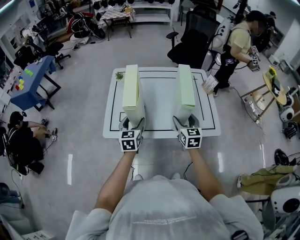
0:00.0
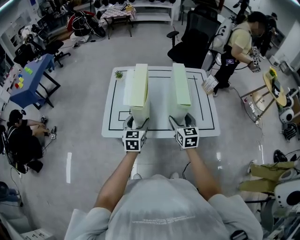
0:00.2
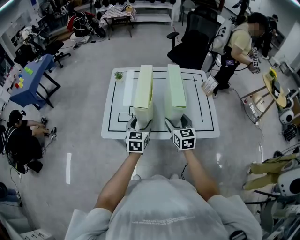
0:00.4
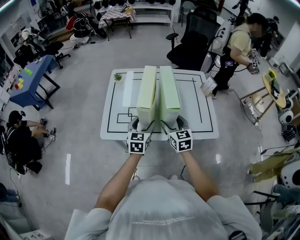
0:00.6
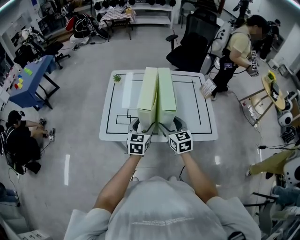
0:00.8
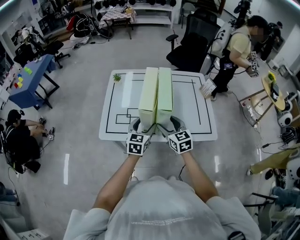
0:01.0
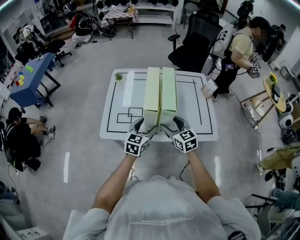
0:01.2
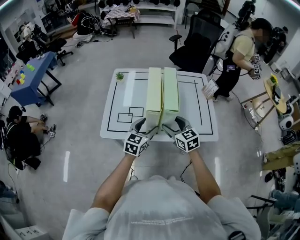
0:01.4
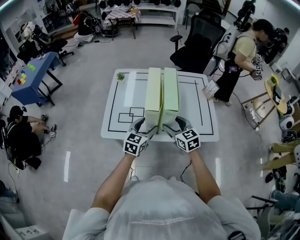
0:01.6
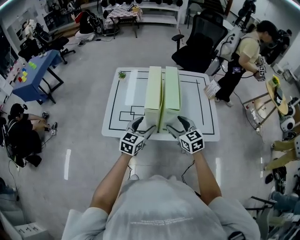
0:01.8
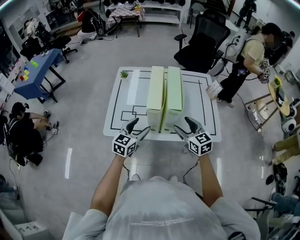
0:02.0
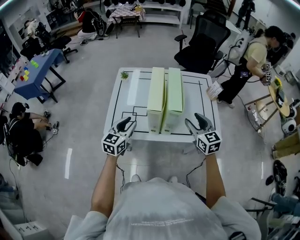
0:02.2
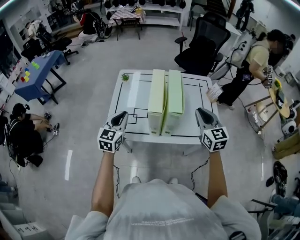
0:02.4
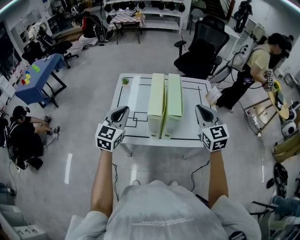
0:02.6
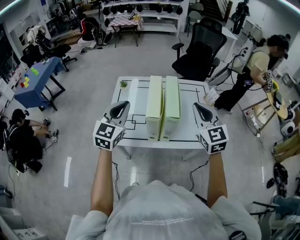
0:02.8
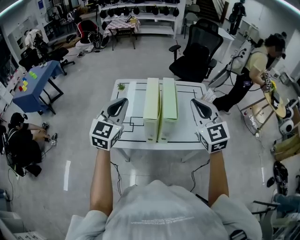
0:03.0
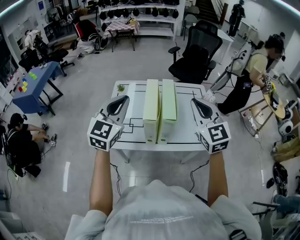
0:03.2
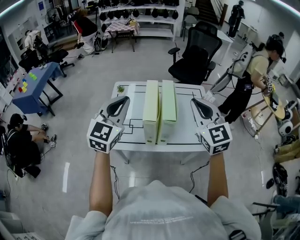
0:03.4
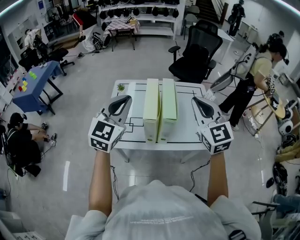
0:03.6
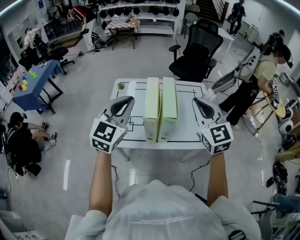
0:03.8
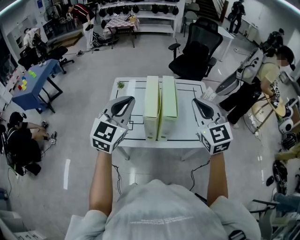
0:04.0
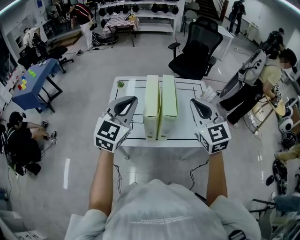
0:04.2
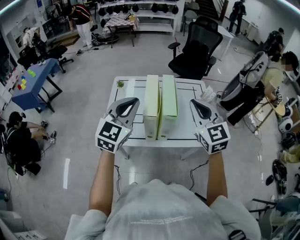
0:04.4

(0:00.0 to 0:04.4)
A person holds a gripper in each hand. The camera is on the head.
0:00.0 - 0:01.4: The right gripper is displaced to the left by roughly 5 cm, and changes its angle by some 20 degrees; the left gripper is displaced to the right by some 10 cm, and turns by roughly 20 degrees.
0:01.4 - 0:03.0: The left gripper goes some 25 cm upward and to the left, rotates some 30 degrees, and closes up; the right gripper is displaced upward by about 25 cm, swivels roughly 30 degrees, and closes its fingers.
0:03.0 - 0:04.4: The left gripper is displaced to the right by approximately 5 cm.

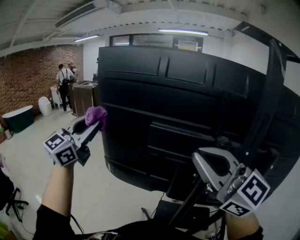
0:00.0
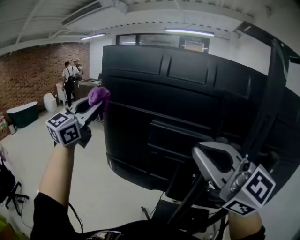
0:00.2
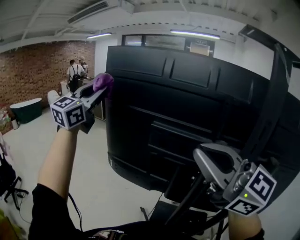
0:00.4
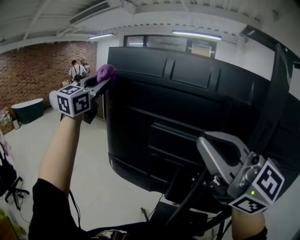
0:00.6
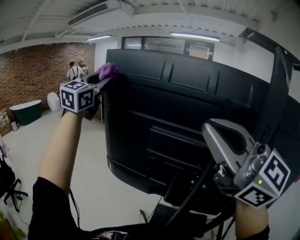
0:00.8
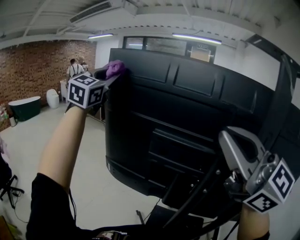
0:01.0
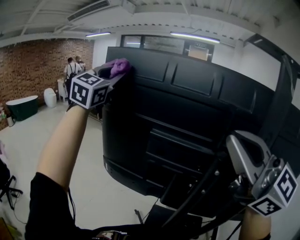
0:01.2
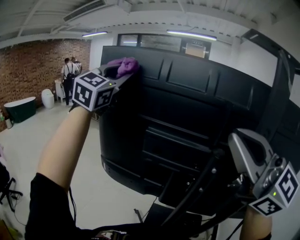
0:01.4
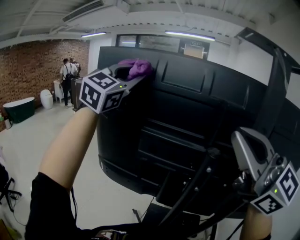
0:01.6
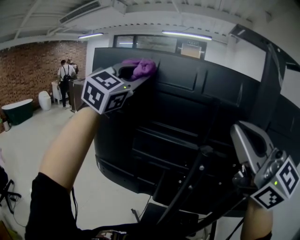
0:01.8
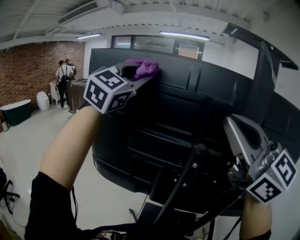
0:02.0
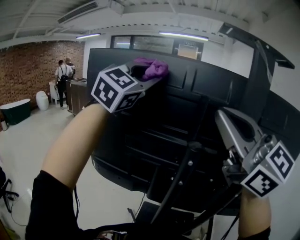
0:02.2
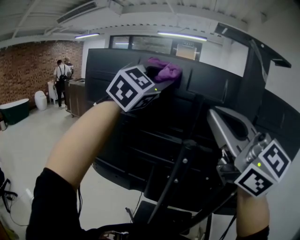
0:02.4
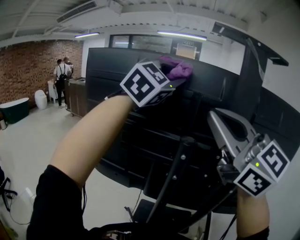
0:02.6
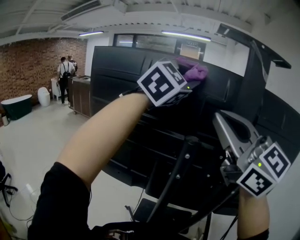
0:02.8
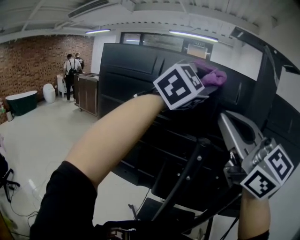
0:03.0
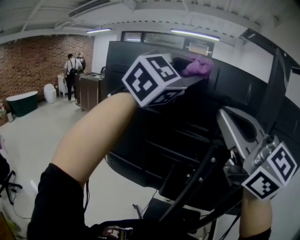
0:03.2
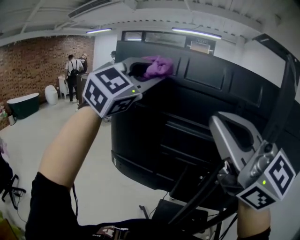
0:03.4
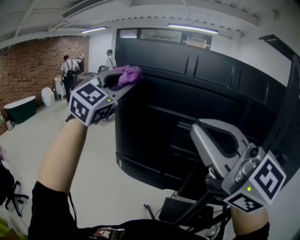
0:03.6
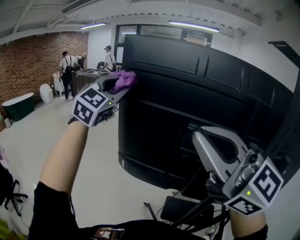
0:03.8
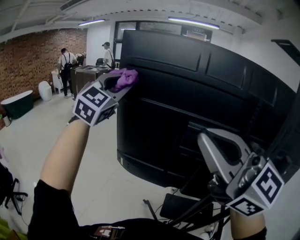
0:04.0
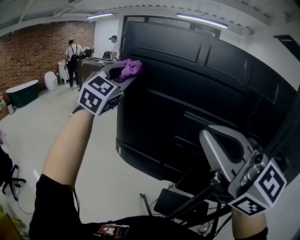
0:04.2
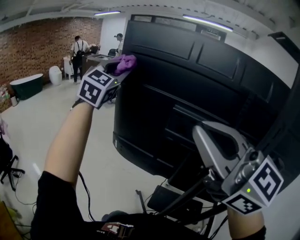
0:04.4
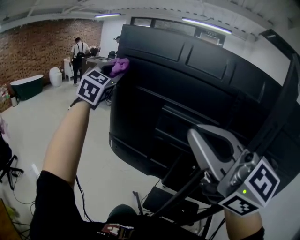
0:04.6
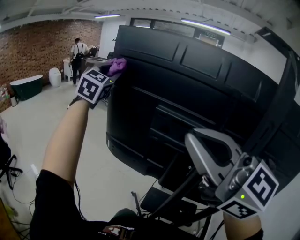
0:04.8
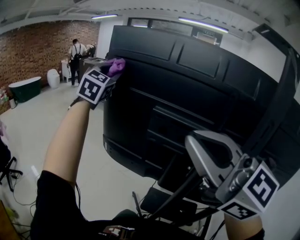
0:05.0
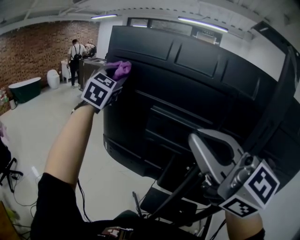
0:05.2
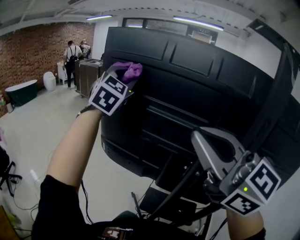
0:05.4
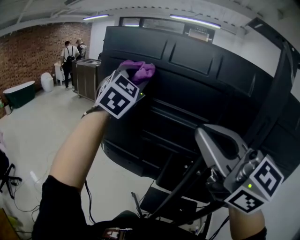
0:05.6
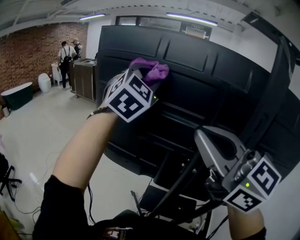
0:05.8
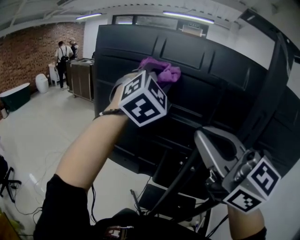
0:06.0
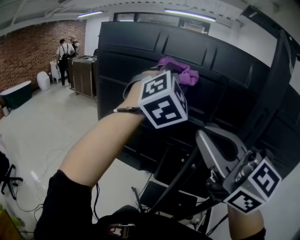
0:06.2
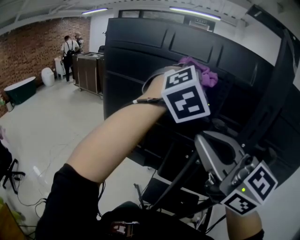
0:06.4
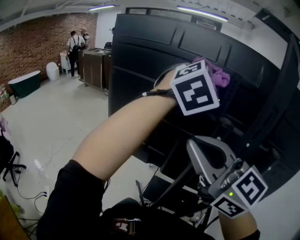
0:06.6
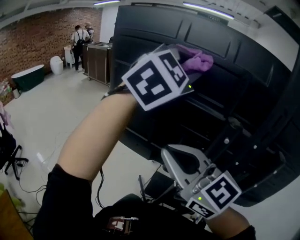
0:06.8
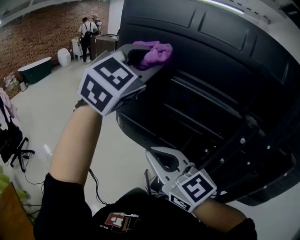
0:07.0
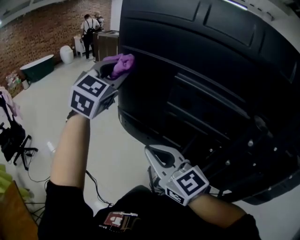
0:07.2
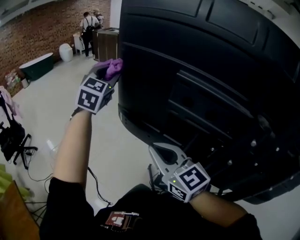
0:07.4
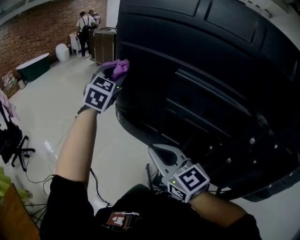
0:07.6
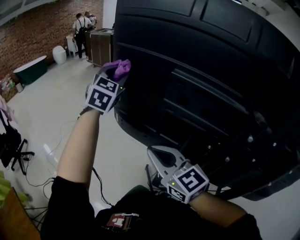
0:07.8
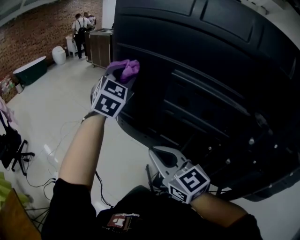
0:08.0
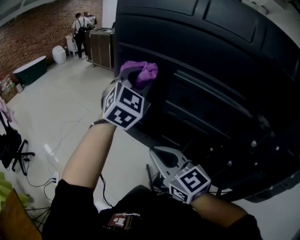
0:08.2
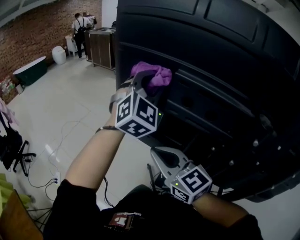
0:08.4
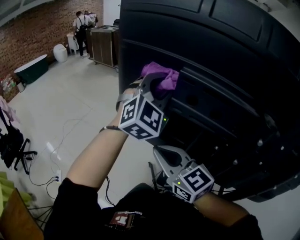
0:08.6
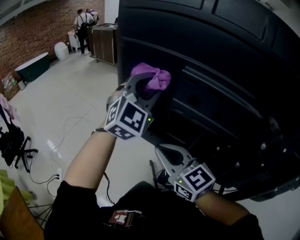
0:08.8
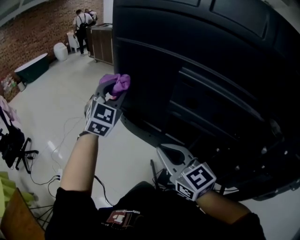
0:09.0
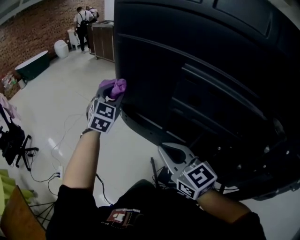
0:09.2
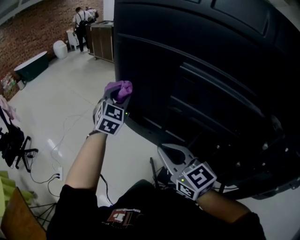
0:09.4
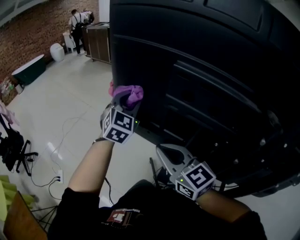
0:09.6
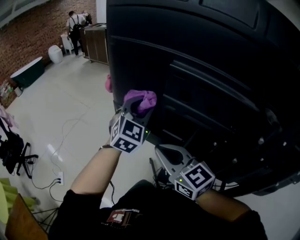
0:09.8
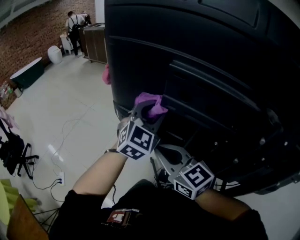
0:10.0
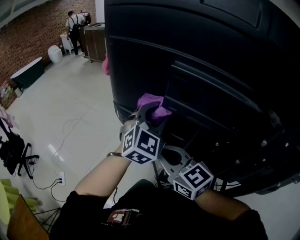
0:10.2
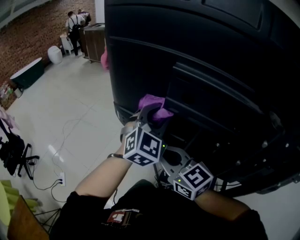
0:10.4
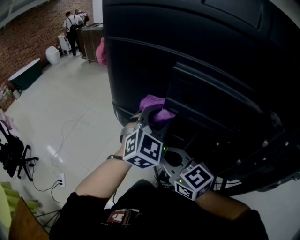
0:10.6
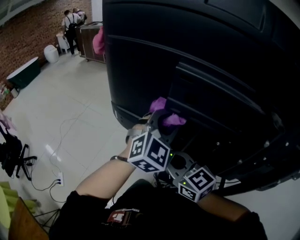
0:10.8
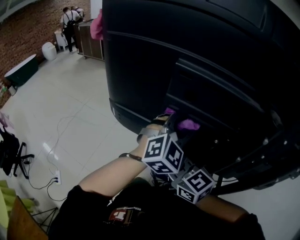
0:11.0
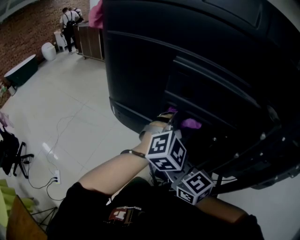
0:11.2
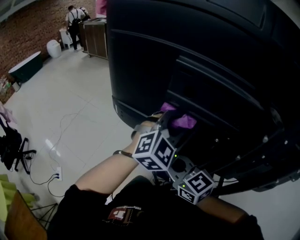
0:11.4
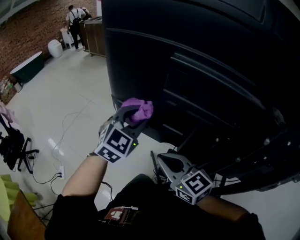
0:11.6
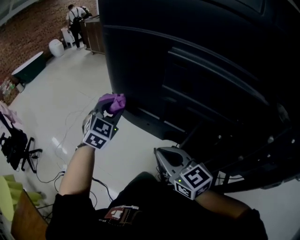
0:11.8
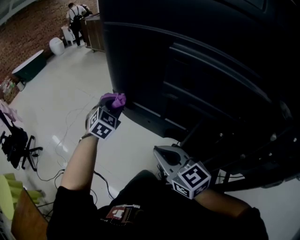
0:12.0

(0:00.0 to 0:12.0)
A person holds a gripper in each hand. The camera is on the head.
0:00.0 - 0:01.6: The left gripper moves to the right and upward, approximately 25 cm, and changes its angle by about 20 degrees. Meanwhile the right gripper goes roughly 15 cm upward and to the right.
0:01.6 - 0:03.0: The left gripper heads to the right, covering some 25 cm, and swivels some 20 degrees.
0:03.0 - 0:04.4: The right gripper heads to the left and downward, covering approximately 15 cm. Meanwhile the left gripper is displaced to the left and forward by about 40 cm, and turns by about 40 degrees.
0:04.4 - 0:06.0: The right gripper heads to the right, covering some 10 cm. The left gripper goes approximately 25 cm to the right and backward, and rotates about 20 degrees.
0:06.0 - 0:07.6: The right gripper shifts approximately 30 cm downward and to the left, and rotates some 20 degrees; the left gripper travels to the left, downward and forward by roughly 35 cm, and rotates about 30 degrees.
0:07.6 - 0:09.0: The left gripper is displaced downward by about 5 cm, and goes to the right and returns, approximately 15 cm each way.
0:09.0 - 0:10.4: The left gripper shifts about 20 cm to the right and backward.
0:10.4 - 0:12.0: The left gripper is displaced to the left, downward and forward by about 25 cm, and rotates some 30 degrees.

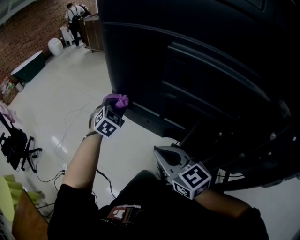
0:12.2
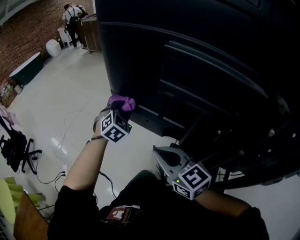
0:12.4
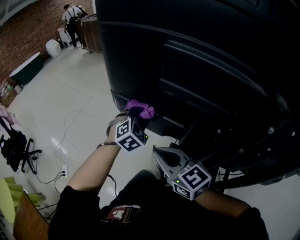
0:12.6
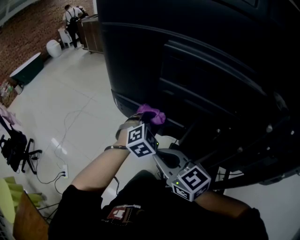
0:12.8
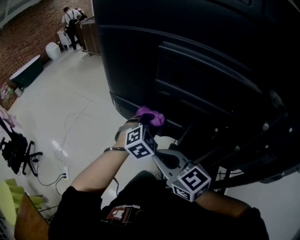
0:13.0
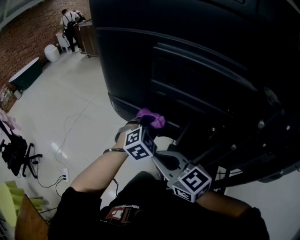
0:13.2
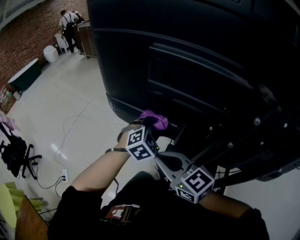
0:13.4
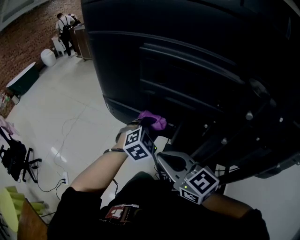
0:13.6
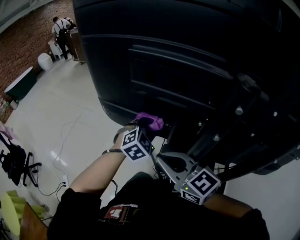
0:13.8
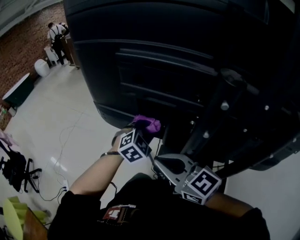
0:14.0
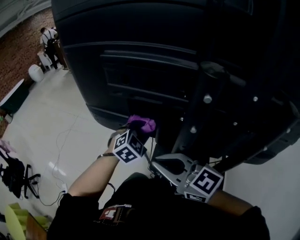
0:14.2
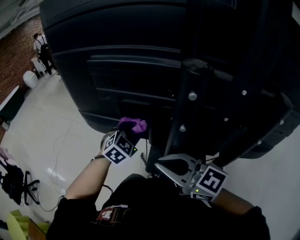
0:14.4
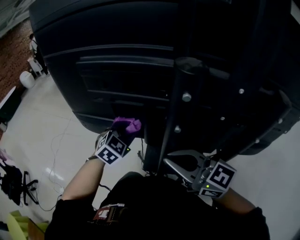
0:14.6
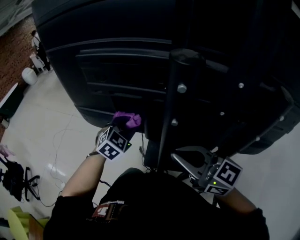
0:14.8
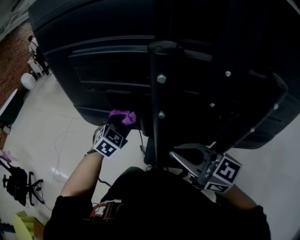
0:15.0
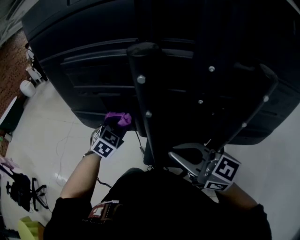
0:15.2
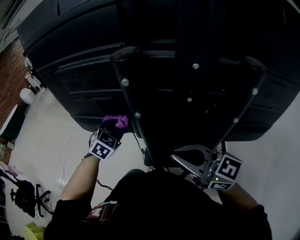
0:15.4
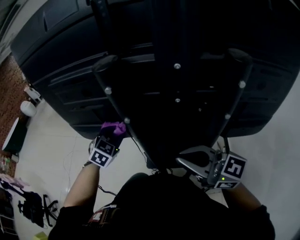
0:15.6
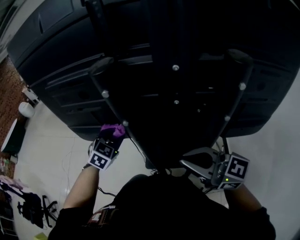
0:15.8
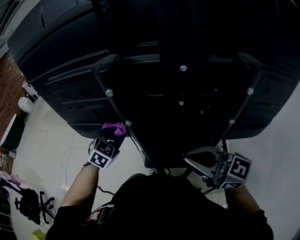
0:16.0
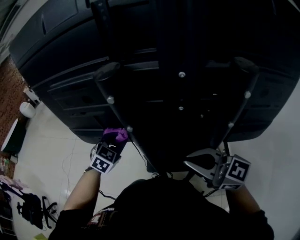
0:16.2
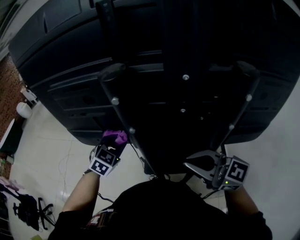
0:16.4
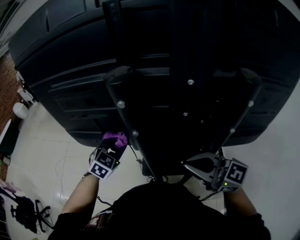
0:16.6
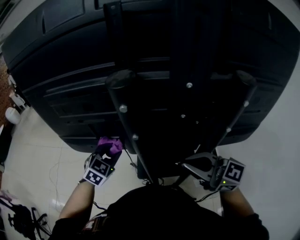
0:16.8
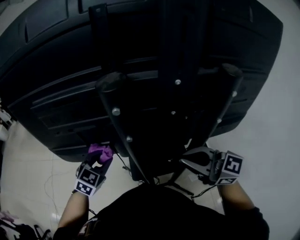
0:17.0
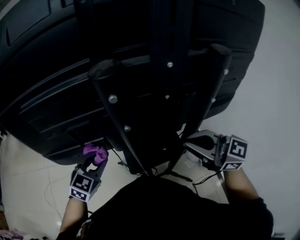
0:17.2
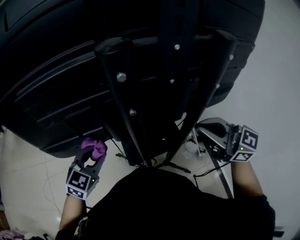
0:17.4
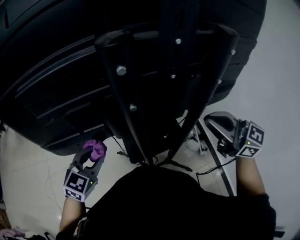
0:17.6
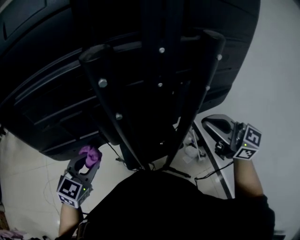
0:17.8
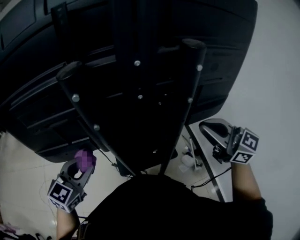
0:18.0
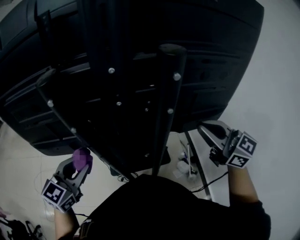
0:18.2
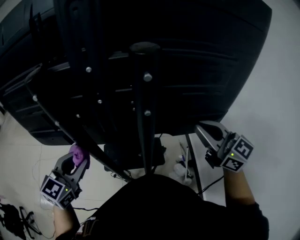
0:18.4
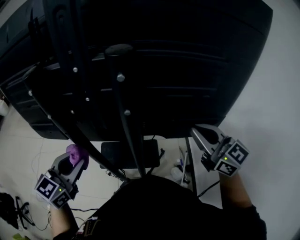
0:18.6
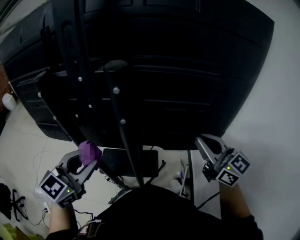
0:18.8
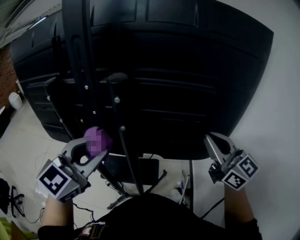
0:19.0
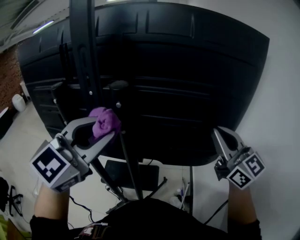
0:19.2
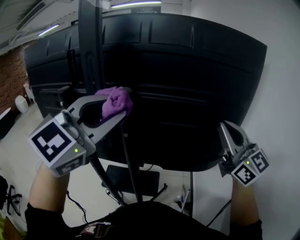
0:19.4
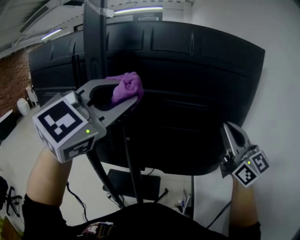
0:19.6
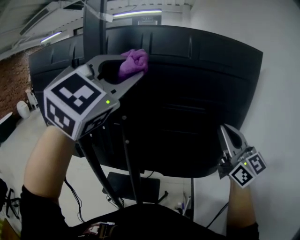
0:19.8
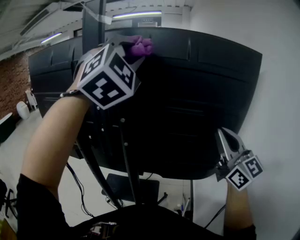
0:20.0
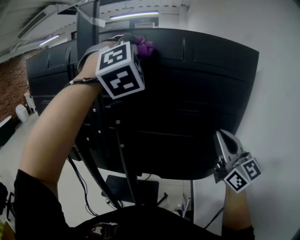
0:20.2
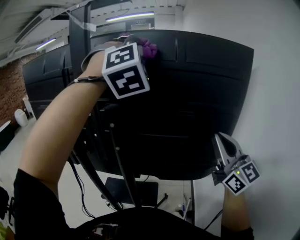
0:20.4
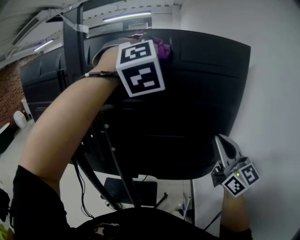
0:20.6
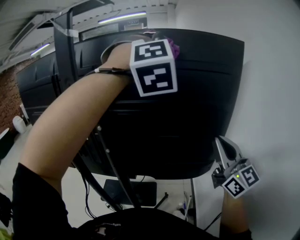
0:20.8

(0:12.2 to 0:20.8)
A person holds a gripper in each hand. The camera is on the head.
0:12.2 - 0:13.6: The left gripper shifts some 25 cm to the right and backward, and changes its angle by about 30 degrees. The right gripper moves some 5 cm.
0:13.6 - 0:15.0: The right gripper shifts some 15 cm to the right and backward.
0:15.0 - 0:16.6: The right gripper is displaced to the right by approximately 5 cm.
0:16.6 - 0:18.0: The left gripper ends up some 15 cm from where it was, and rotates about 30 degrees. Meanwhile the right gripper moves some 15 cm, and turns by approximately 30 degrees.
0:18.0 - 0:19.4: The right gripper heads to the right and upward, covering some 25 cm. The left gripper goes approximately 40 cm to the right and upward, and swivels about 30 degrees.
0:19.4 - 0:20.8: The right gripper travels to the right by some 5 cm. The left gripper travels to the right, upward and forward by approximately 25 cm, and rotates around the line of its fingers by roughly 60 degrees, clockwise from behind.
